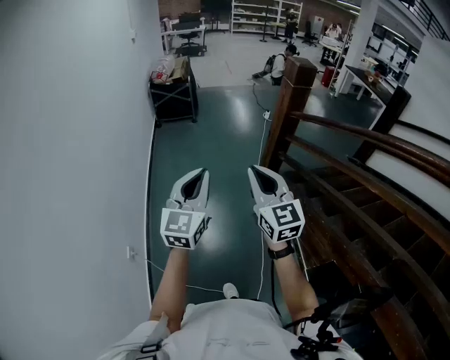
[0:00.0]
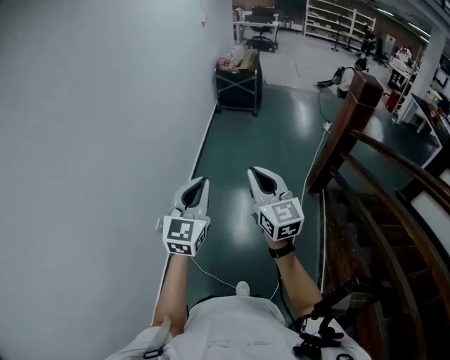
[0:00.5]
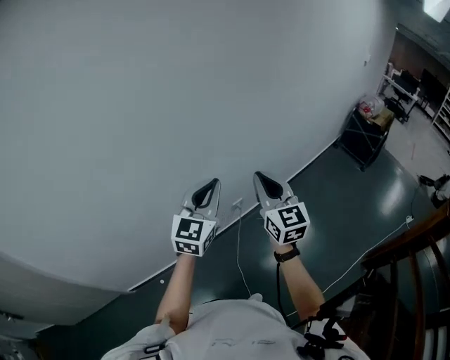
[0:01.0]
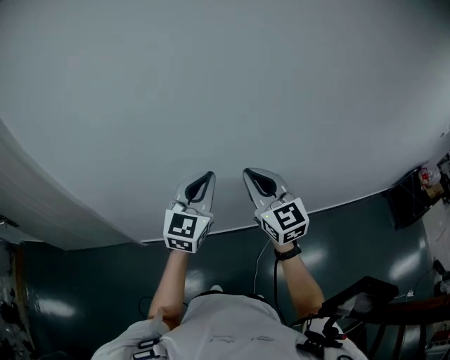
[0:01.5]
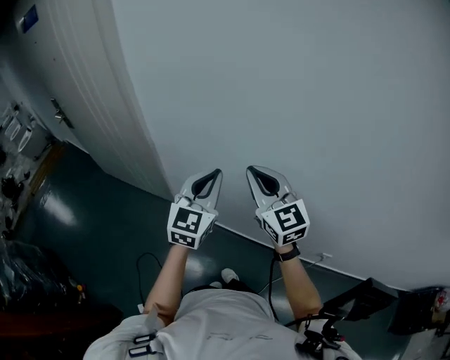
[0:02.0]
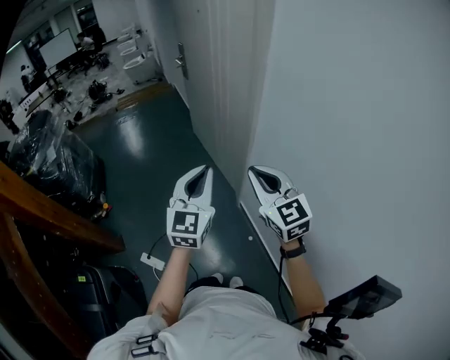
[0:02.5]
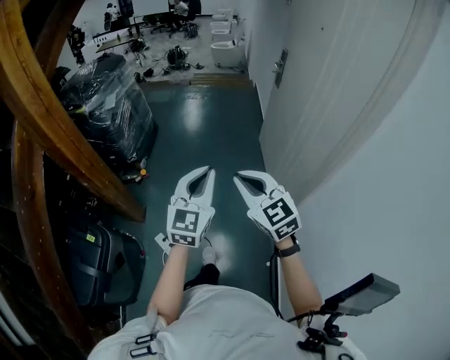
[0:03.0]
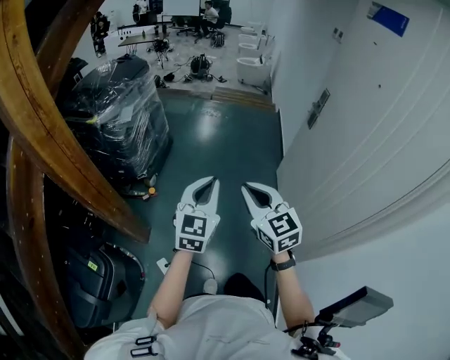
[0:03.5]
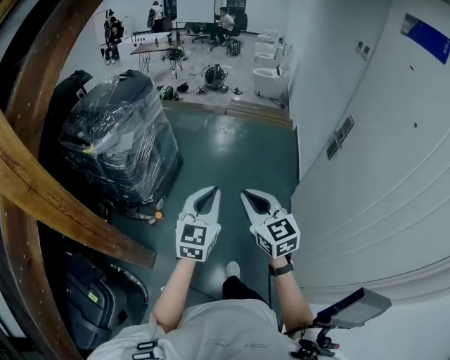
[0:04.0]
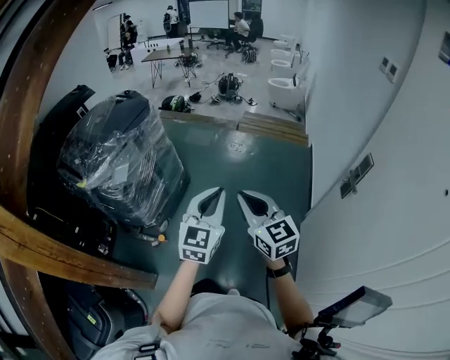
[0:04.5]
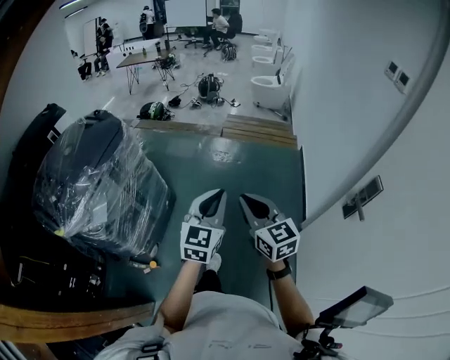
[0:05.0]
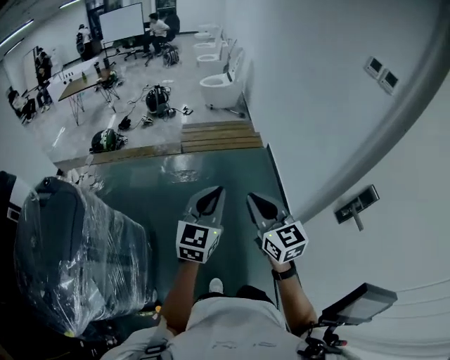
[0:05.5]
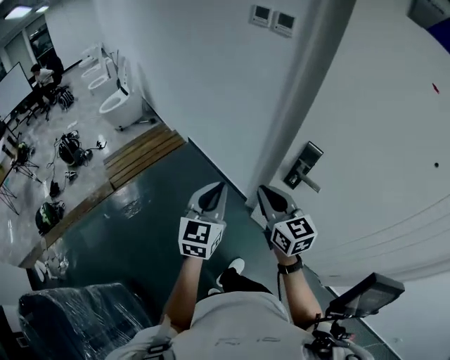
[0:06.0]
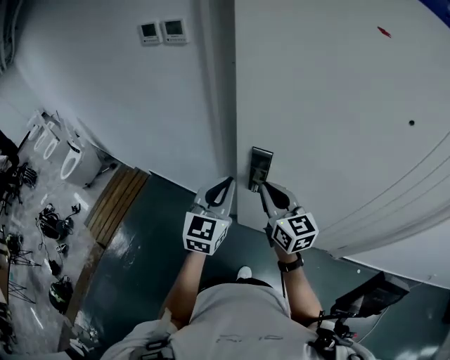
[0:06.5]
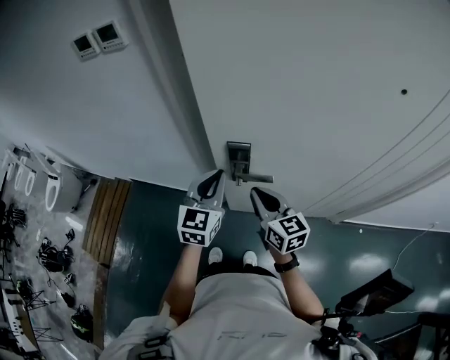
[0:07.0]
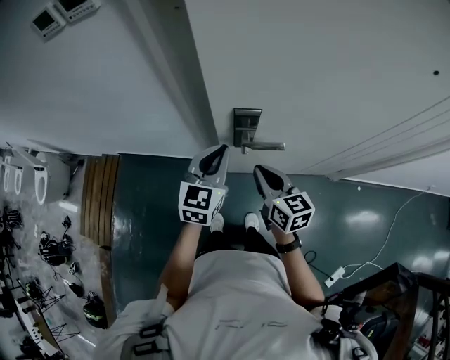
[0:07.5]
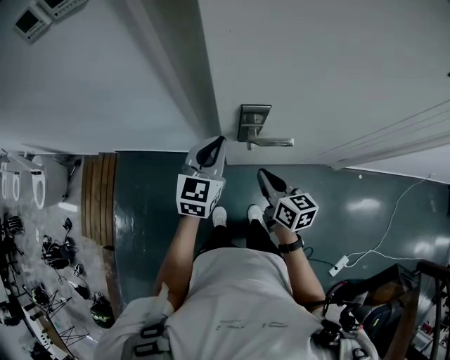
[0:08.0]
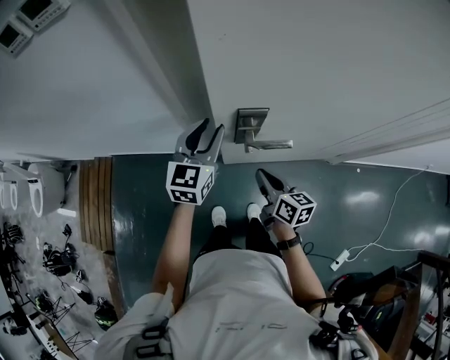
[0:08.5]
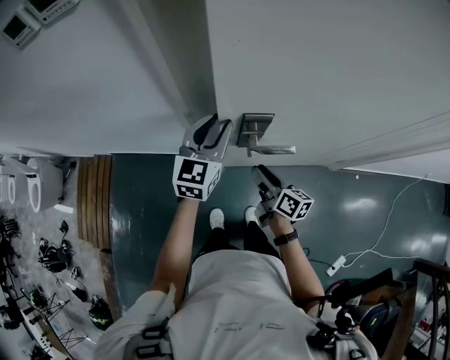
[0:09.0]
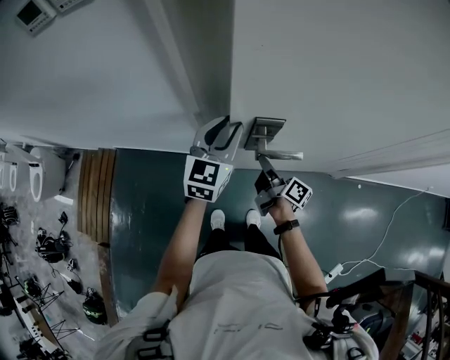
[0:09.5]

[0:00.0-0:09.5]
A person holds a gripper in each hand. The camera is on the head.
0:00.0 to 0:02.0: The pair of grippers is taken some 90 cm. The left gripper rotates approximately 110 degrees, while the right gripper changes its angle by roughly 130 degrees.
0:02.0 to 0:04.0: The pair of grippers is taken some 90 cm. The left gripper swivels roughly 80 degrees, while the right gripper turns by about 80 degrees.
0:04.0 to 0:05.5: Both grippers are carried about 60 cm. The right gripper turns by some 20 degrees. The left gripper changes its angle by approximately 20 degrees.
0:05.5 to 0:07.5: The pair of grippers is taken about 50 cm. The left gripper turns by approximately 80 degrees; the right gripper turns by roughly 80 degrees.
0:07.5 to 0:09.5: The left gripper moves forward, roughly 10 cm, and opens its fingers. Meanwhile the right gripper travels downward and forward by about 15 cm, twists roughly 50 degrees clockwise, seen from behind, and opens up.

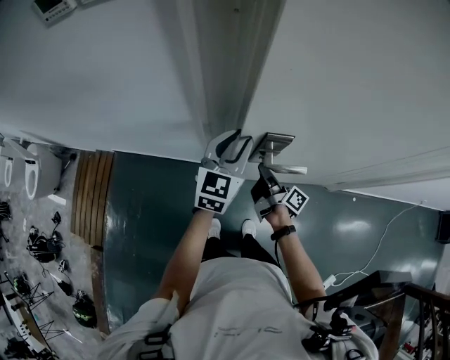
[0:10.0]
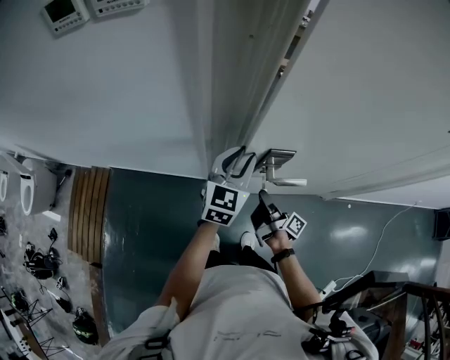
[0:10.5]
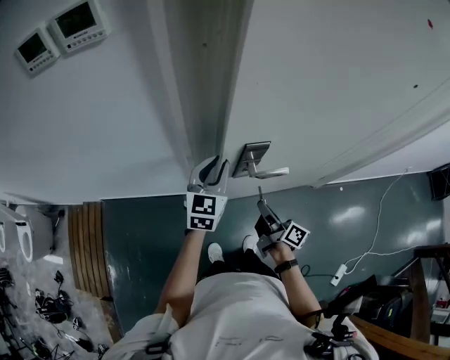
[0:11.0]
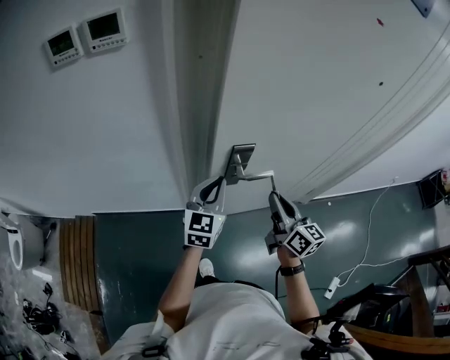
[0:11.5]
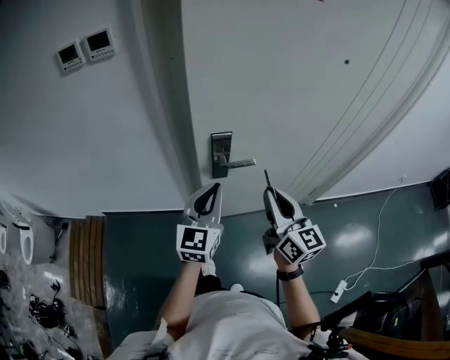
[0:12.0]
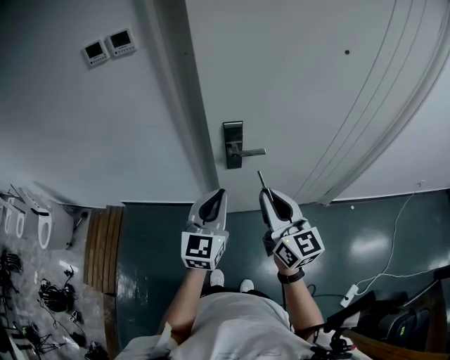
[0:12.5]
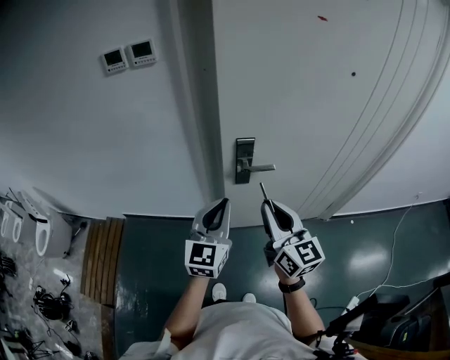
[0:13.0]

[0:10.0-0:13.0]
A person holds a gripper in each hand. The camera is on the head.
0:10.0 to 0:11.5: The right gripper goes roughly 20 cm upward and backward, and rolls counterclockwise, seen from behind, by roughly 60 degrees; the left gripper goes roughly 10 cm backward, and closes.
0:11.5 to 0:13.0: The grippers both shift backward and upward by some 20 cm. The right gripper turns by about 20 degrees.

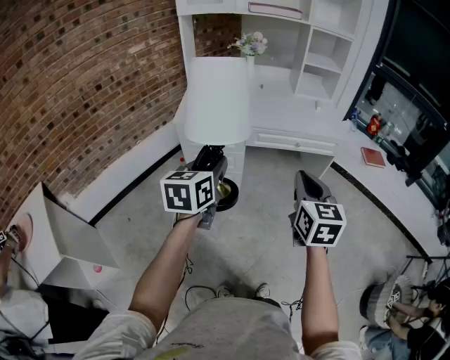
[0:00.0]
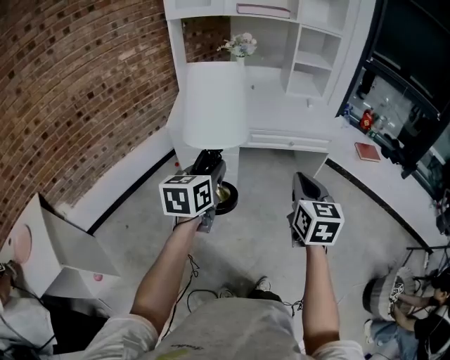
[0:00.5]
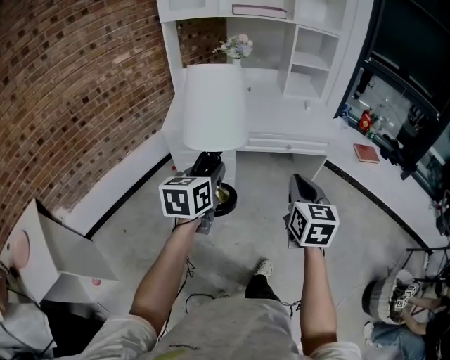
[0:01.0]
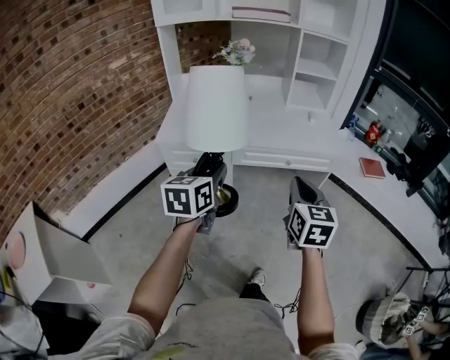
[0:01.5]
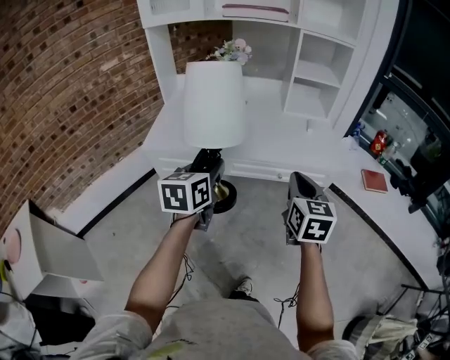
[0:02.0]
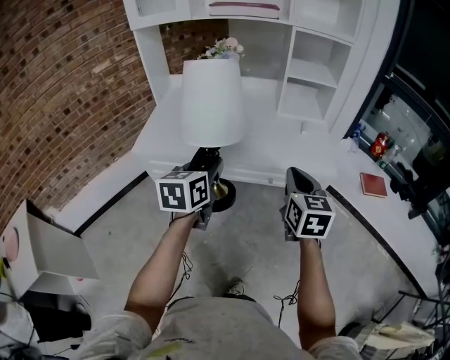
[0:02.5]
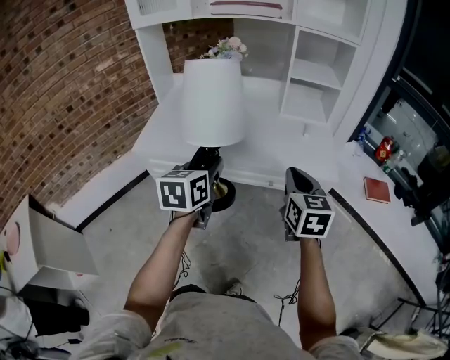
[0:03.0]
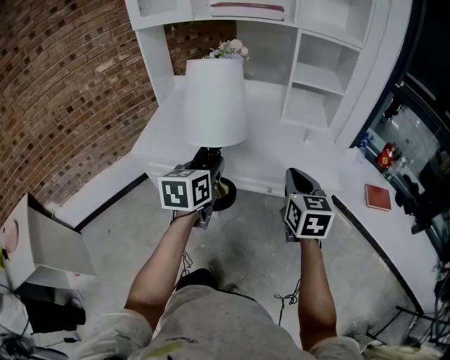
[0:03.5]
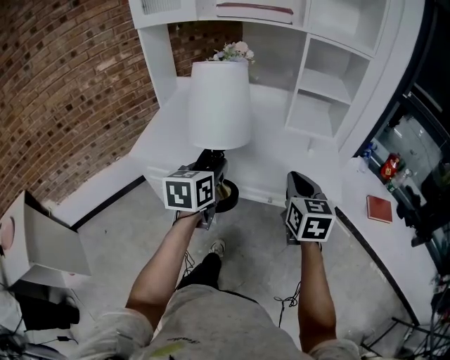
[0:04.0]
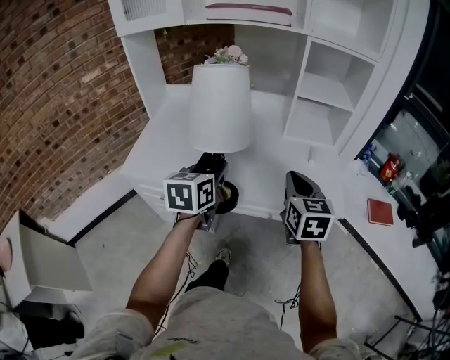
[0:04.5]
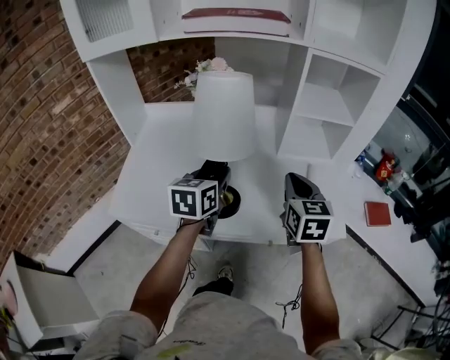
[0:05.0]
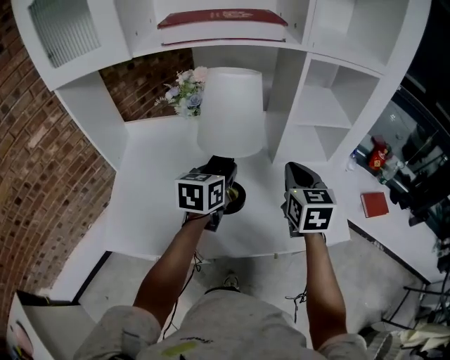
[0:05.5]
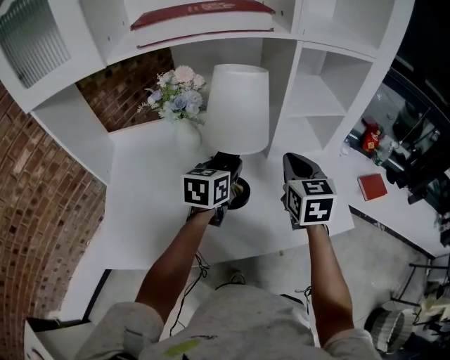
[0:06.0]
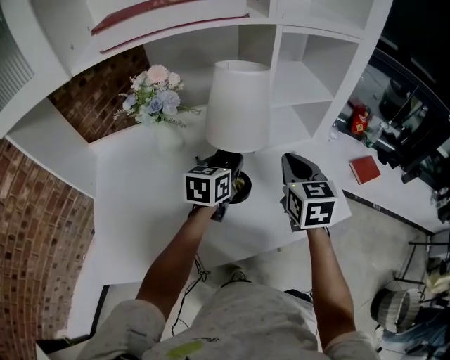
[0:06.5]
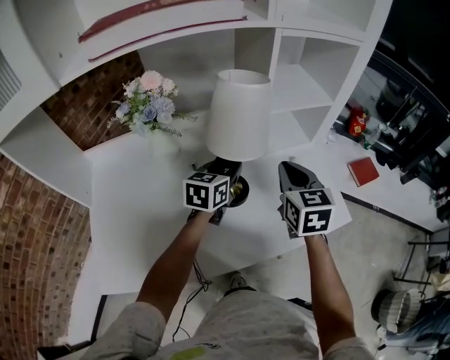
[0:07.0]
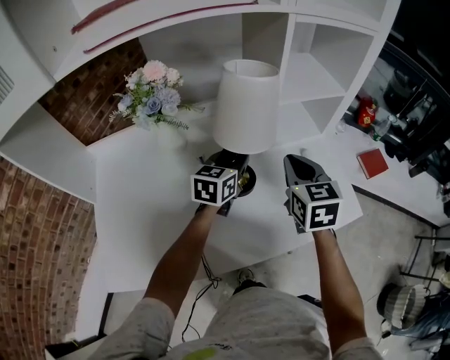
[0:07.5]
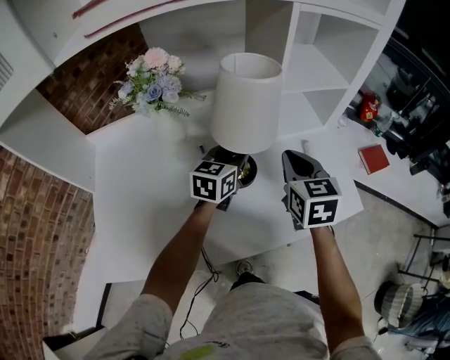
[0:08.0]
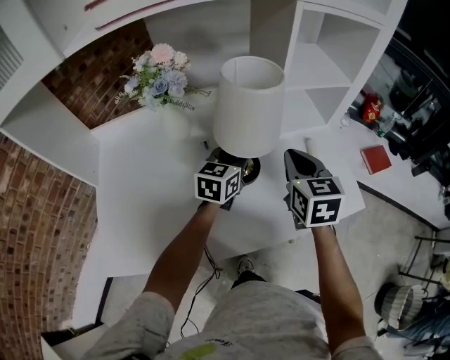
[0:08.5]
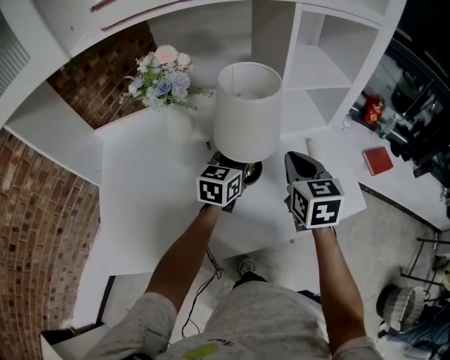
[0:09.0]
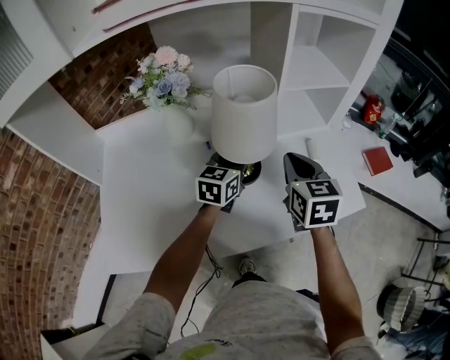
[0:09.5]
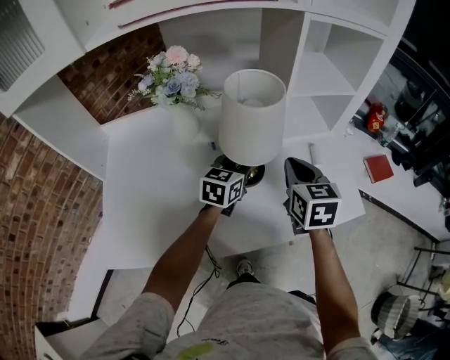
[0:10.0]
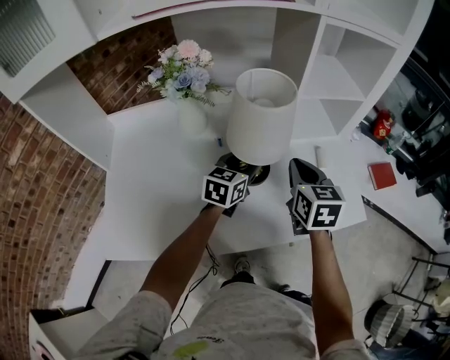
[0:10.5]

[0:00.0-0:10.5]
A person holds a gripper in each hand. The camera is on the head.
0:00.0 to 0:02.0: Both grippers travel together forward and to the right, some 25 cm.
0:02.0 to 0:04.0: The right gripper goes roughly 15 cm forward. Meanwhile the left gripper moves forward and to the right, about 15 cm.
0:04.0 to 0:06.5: The left gripper changes place by about 40 cm, and rotates roughly 40 degrees. Meanwhile the right gripper changes place by some 30 cm, and rotates roughly 20 degrees.
0:06.5 to 0:08.5: There are only small adjustments of the grippers.
0:08.5 to 0:10.5: The left gripper opens its fingers.

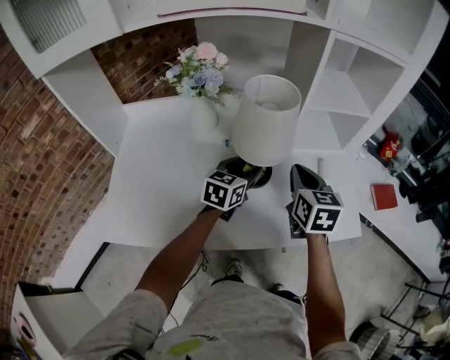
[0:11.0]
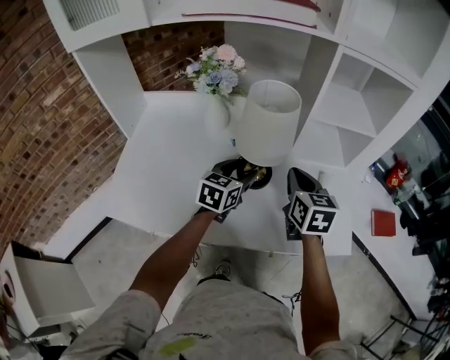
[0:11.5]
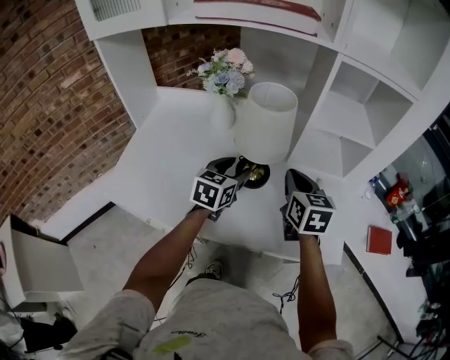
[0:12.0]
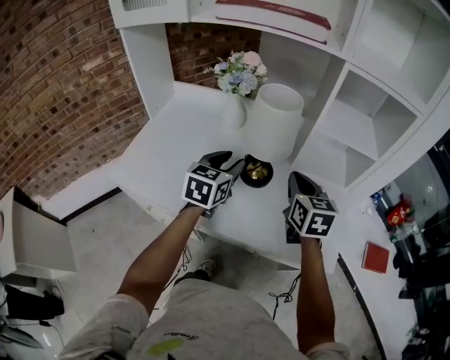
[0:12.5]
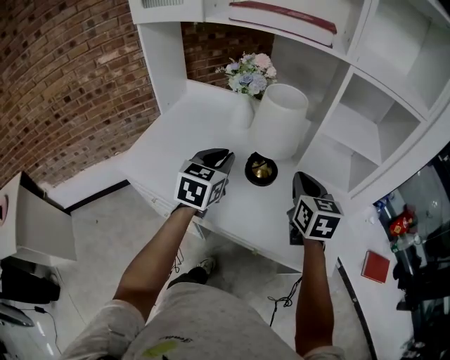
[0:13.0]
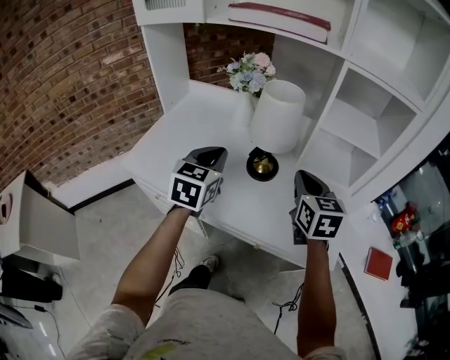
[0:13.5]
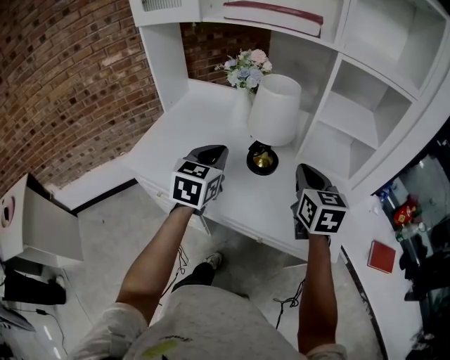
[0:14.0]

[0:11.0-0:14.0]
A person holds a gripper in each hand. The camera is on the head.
0:11.0 to 0:12.5: The right gripper changes its angle by about 20 degrees. Meanwhile the left gripper travels upward and backward by some 10 cm, and turns by approximately 30 degrees.
0:12.5 to 0:14.0: The right gripper moves backward, about 5 cm, while the left gripper shifts about 10 cm backward and upward, and closes up.
